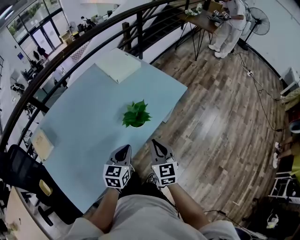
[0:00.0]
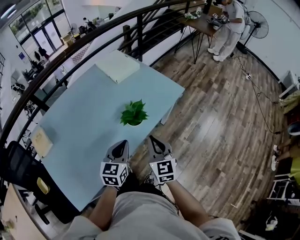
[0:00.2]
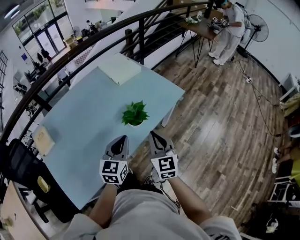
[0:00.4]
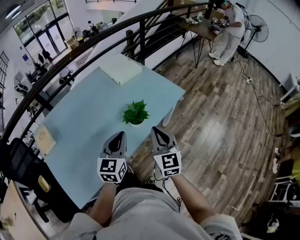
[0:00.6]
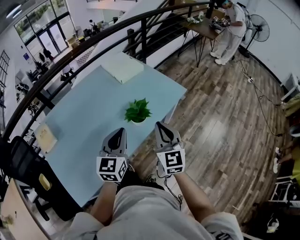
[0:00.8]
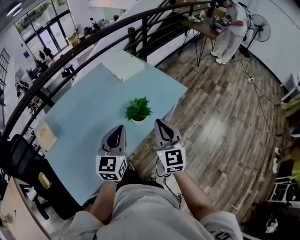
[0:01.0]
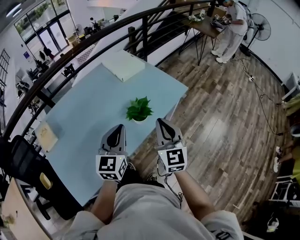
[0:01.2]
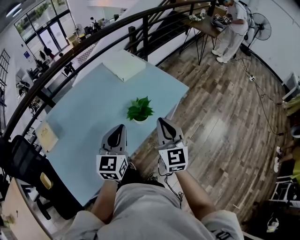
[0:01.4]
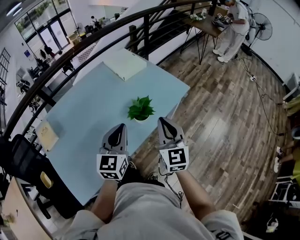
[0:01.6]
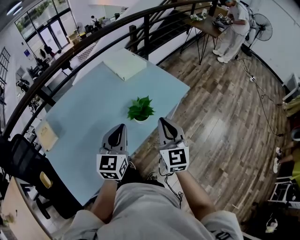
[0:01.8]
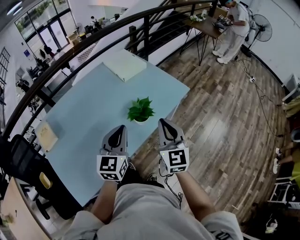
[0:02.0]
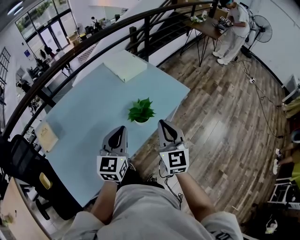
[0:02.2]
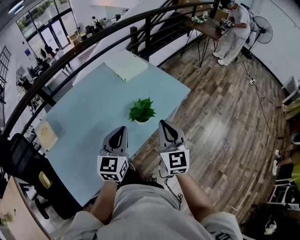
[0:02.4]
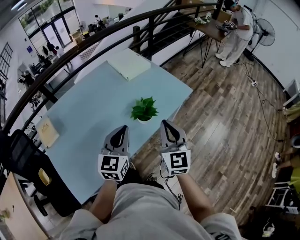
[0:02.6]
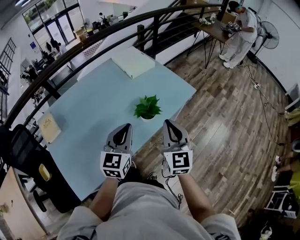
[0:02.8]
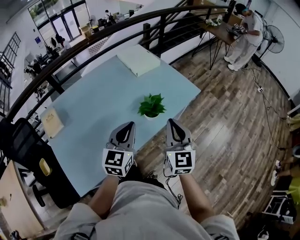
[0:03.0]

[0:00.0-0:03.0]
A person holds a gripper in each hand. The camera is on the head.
0:00.0 to 0:01.6: The two grippers go approximately 15 cm upward. The left gripper changes its angle by some 20 degrees.
0:01.6 to 0:03.0: The grippers stay close to where they were, moving slightly.

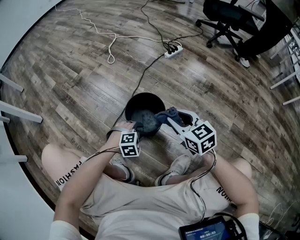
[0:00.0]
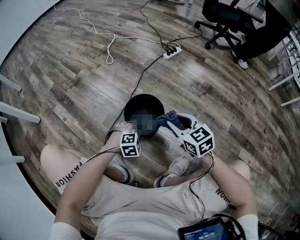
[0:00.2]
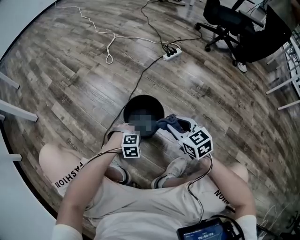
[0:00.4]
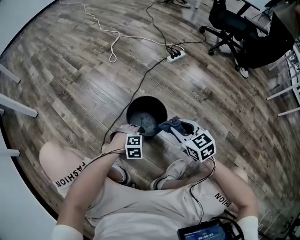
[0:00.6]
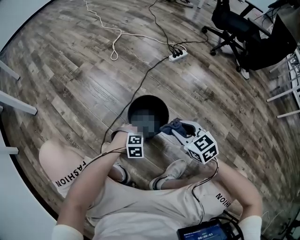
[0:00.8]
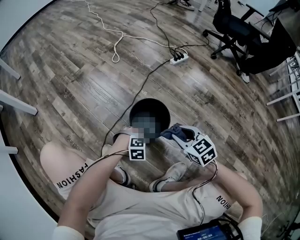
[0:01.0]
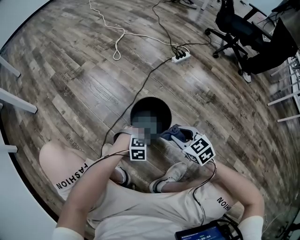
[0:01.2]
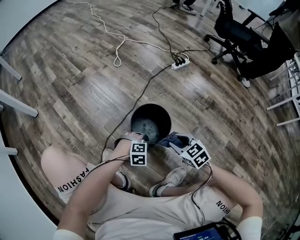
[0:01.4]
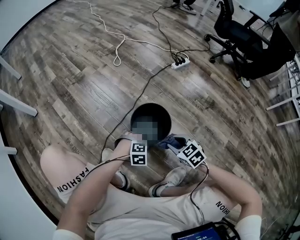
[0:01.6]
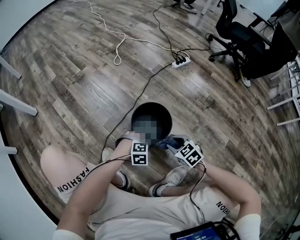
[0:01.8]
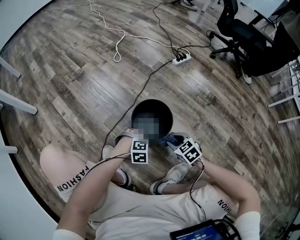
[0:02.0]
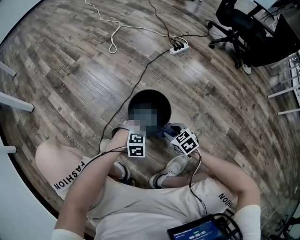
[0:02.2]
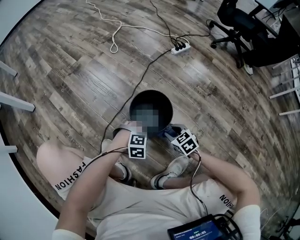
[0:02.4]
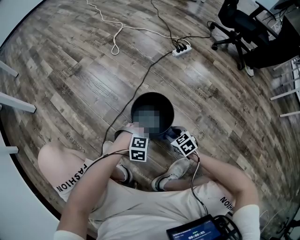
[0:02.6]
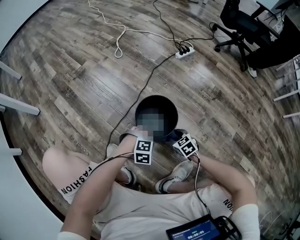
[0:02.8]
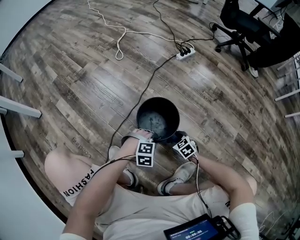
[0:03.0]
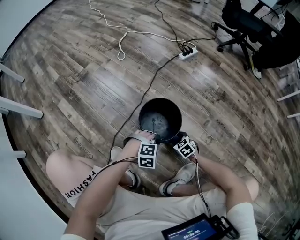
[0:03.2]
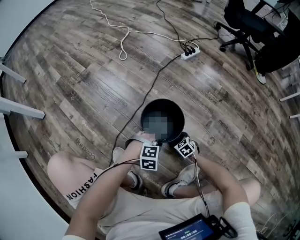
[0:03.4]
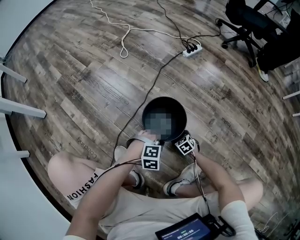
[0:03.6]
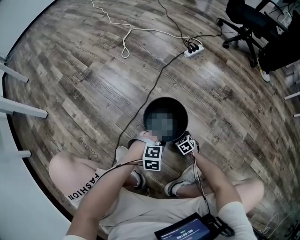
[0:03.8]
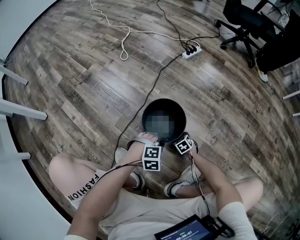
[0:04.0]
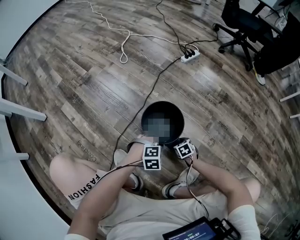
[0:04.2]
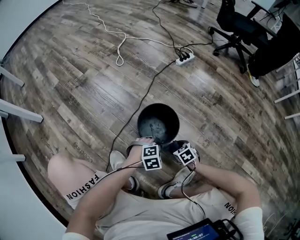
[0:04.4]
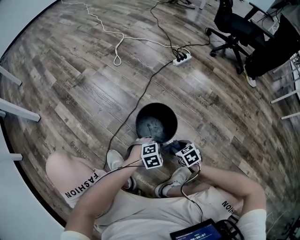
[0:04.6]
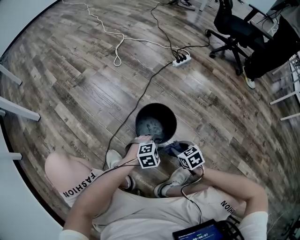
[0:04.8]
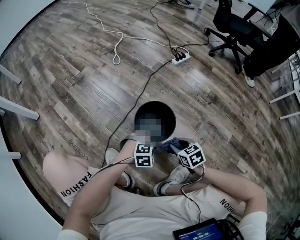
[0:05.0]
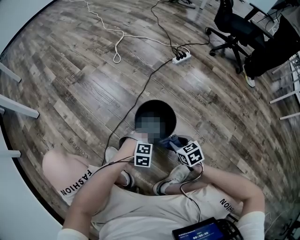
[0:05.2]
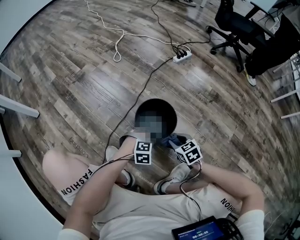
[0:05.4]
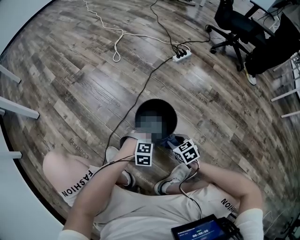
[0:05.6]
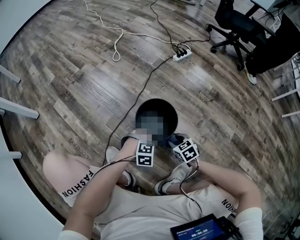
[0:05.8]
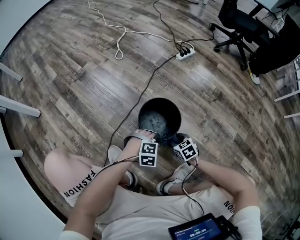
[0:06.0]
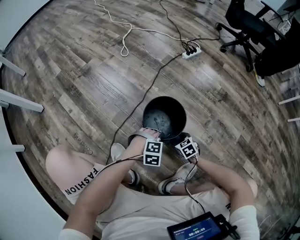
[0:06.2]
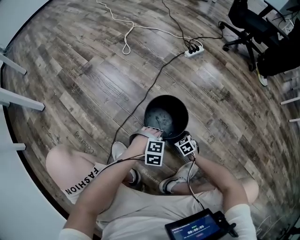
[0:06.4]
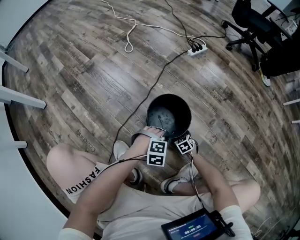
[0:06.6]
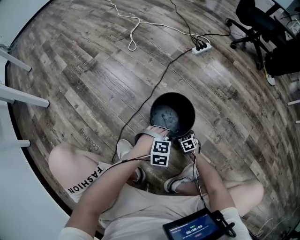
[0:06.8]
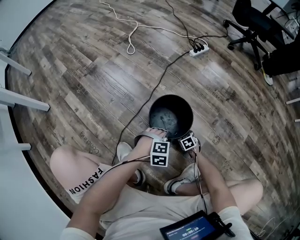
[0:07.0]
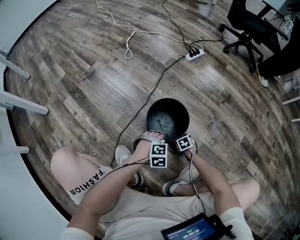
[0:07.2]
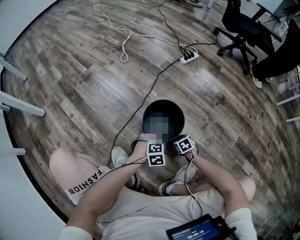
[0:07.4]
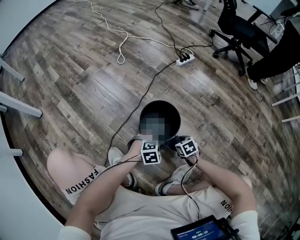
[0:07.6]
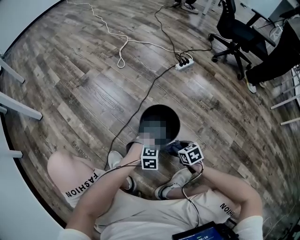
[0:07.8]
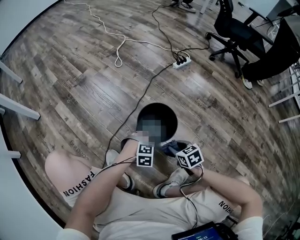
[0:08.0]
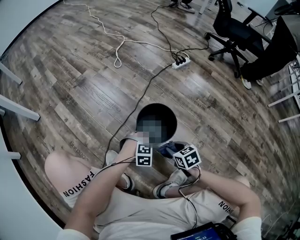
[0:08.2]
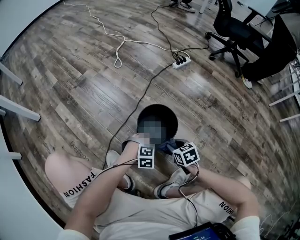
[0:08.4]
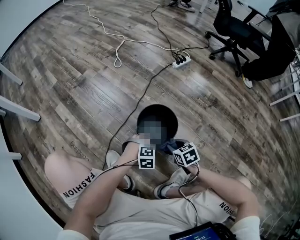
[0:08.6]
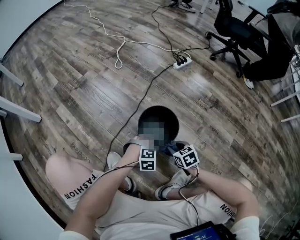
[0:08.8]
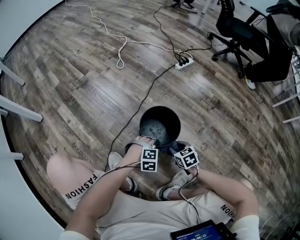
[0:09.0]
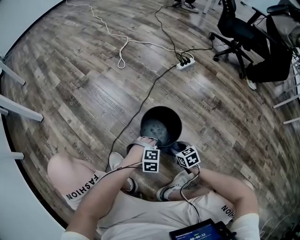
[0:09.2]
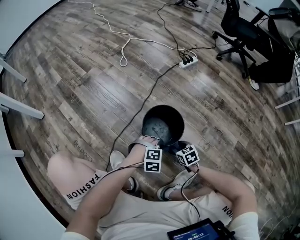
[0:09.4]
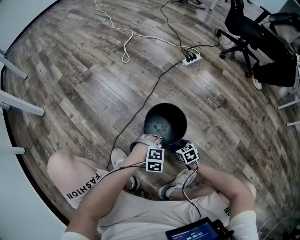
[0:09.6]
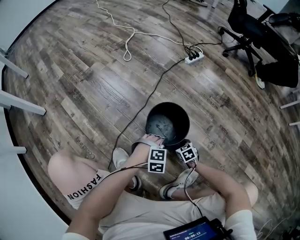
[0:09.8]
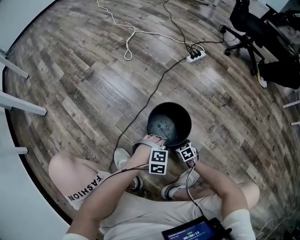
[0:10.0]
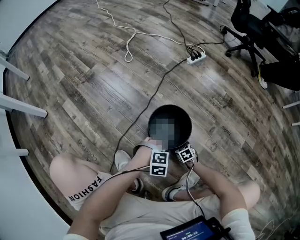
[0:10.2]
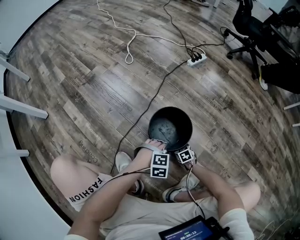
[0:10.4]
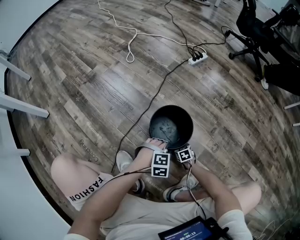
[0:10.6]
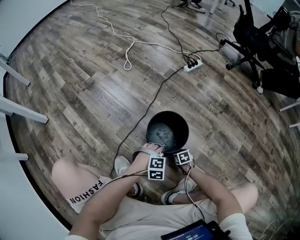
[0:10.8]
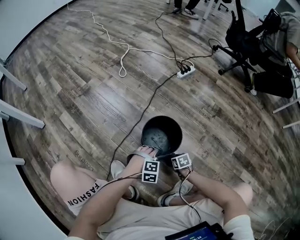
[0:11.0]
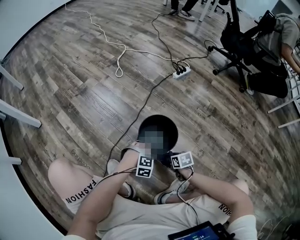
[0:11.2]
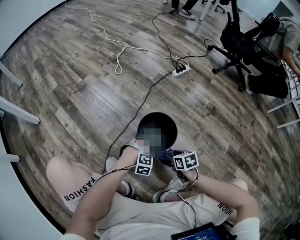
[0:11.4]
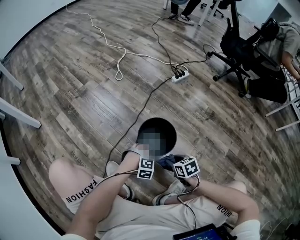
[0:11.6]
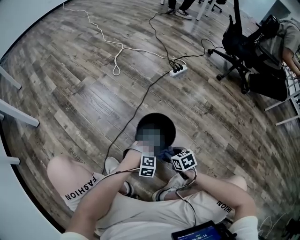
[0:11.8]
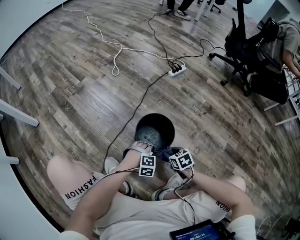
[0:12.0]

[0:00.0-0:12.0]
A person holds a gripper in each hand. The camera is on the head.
0:00.0 to 0:01.6: The left gripper closes. Meanwhile the right gripper is displaced downward by approximately 15 cm, and rotates about 30 degrees.
0:01.6 to 0:03.0: The right gripper moves downward, some 15 cm.
0:03.0 to 0:04.4: The right gripper reaches about 10 cm downward, then returns.
0:04.4 to 0:06.0: The right gripper travels upward and back again, approximately 10 cm each way, while the left gripper opens, then closes again.
0:06.0 to 0:07.6: The right gripper travels downward and back again, about 15 cm each way.
0:09.0 to 0:10.4: The right gripper heads downward, covering about 20 cm.
0:10.4 to 0:12.0: The left gripper opens, then closes again, while the right gripper is displaced upward by some 20 cm.

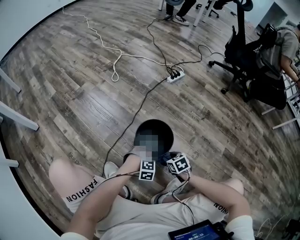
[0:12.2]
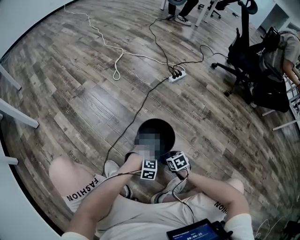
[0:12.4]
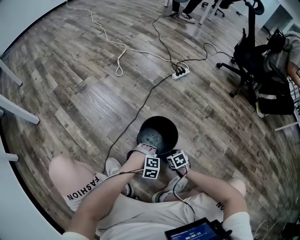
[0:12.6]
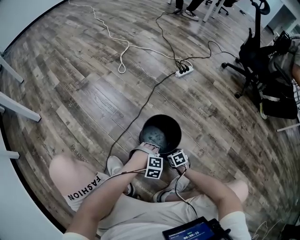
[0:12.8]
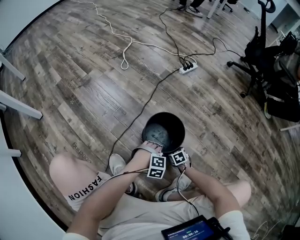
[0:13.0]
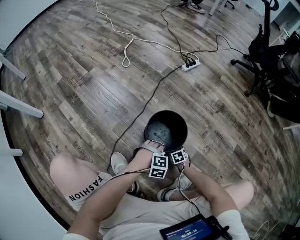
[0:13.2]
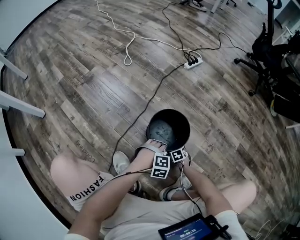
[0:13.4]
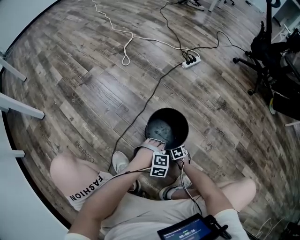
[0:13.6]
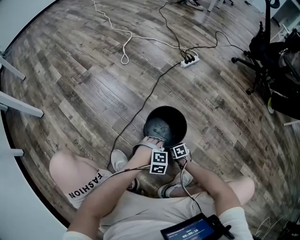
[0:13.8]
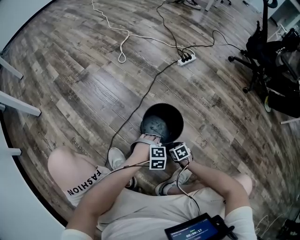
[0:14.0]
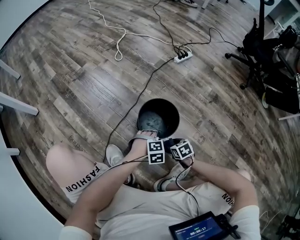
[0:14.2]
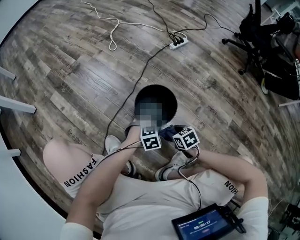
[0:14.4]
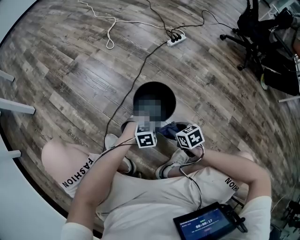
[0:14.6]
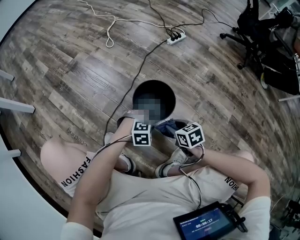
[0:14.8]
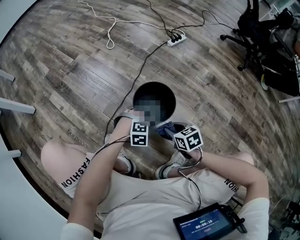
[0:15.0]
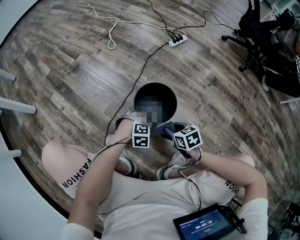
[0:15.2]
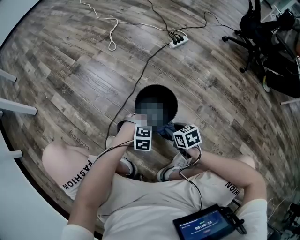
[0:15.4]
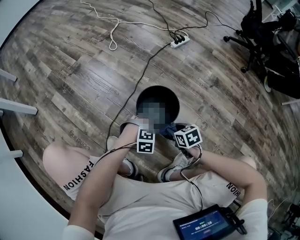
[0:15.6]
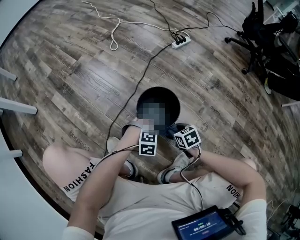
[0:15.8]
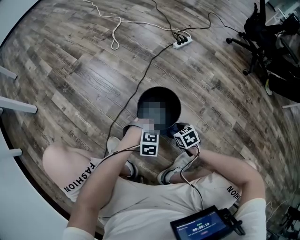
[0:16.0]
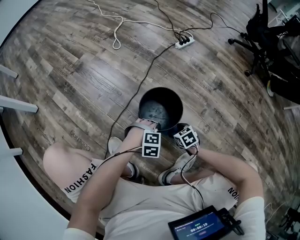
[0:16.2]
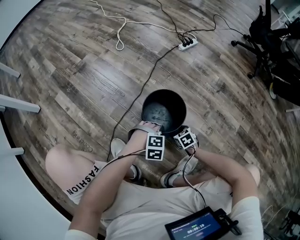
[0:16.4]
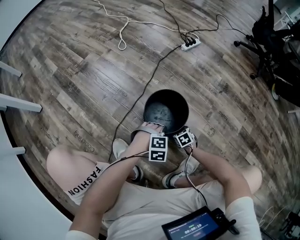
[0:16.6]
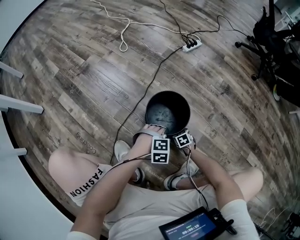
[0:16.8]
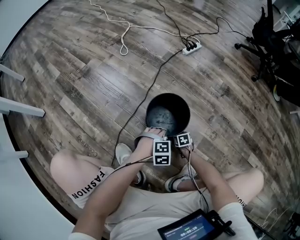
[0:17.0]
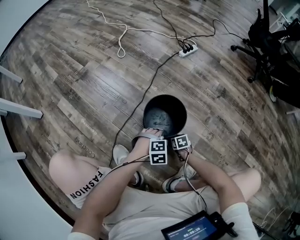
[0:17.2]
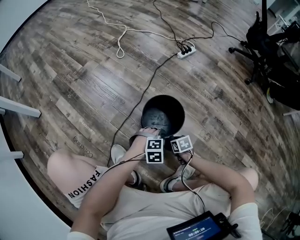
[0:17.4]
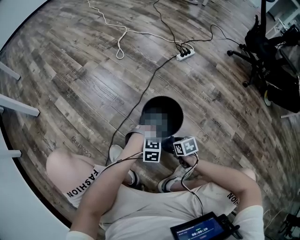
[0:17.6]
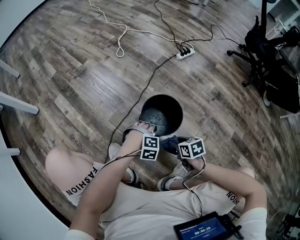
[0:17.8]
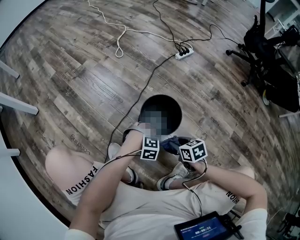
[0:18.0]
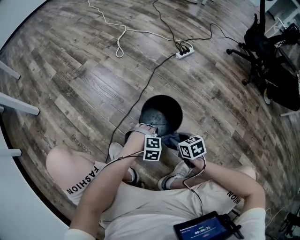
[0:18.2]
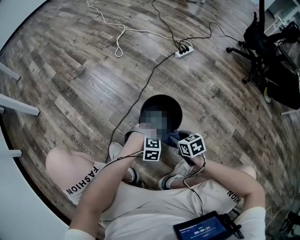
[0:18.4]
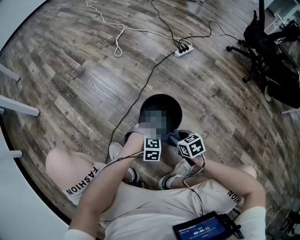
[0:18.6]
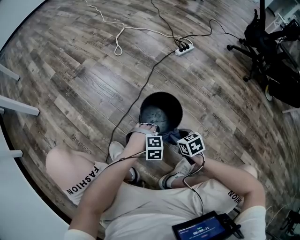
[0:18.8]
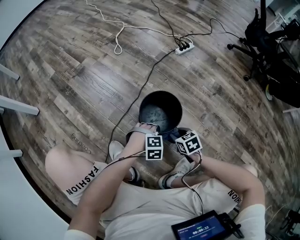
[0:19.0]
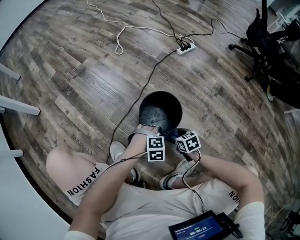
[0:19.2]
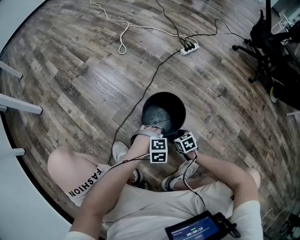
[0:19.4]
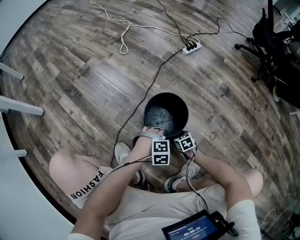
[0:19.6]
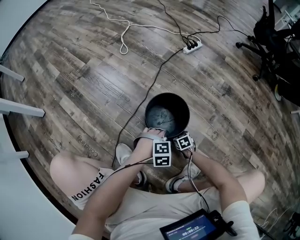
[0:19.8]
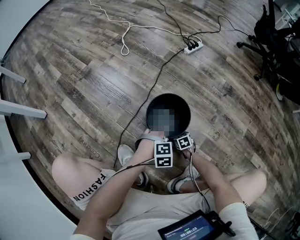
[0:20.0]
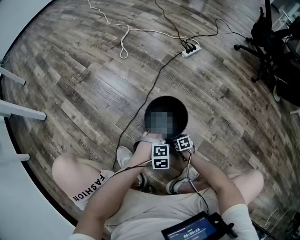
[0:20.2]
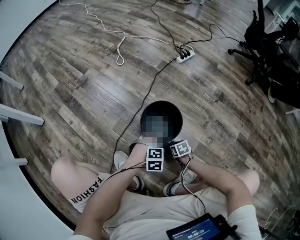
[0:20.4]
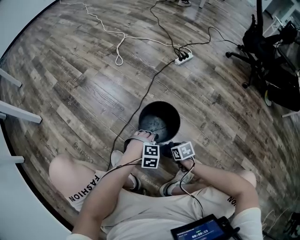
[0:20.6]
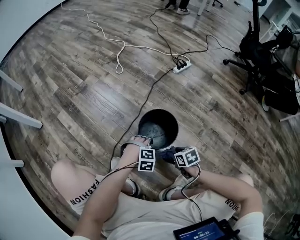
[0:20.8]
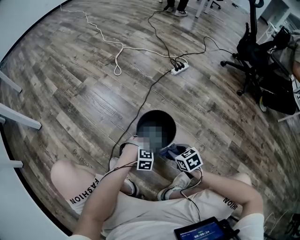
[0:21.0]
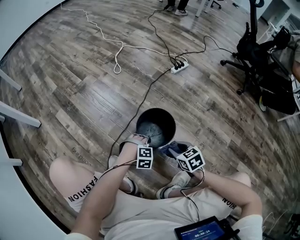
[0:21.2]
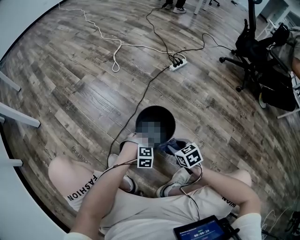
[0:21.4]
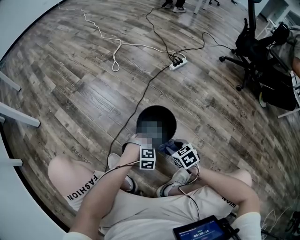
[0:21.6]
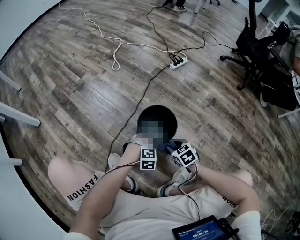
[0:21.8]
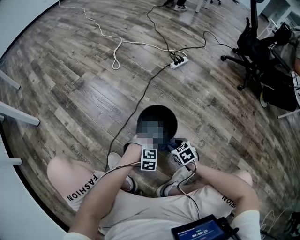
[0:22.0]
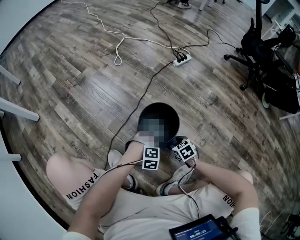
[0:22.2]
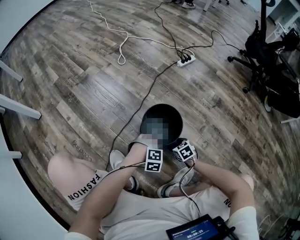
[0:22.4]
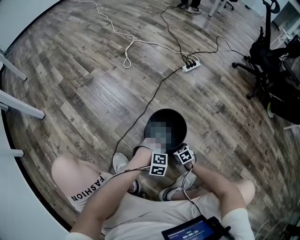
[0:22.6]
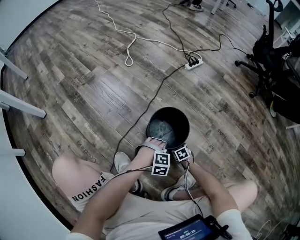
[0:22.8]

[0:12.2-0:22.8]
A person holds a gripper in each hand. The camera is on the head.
0:12.2 to 0:13.8: The right gripper moves downward, some 15 cm.
0:13.8 to 0:15.2: The left gripper opens and closes again; the right gripper moves upward, approximately 20 cm.
0:15.2 to 0:16.8: The right gripper shifts roughly 25 cm downward.
0:16.8 to 0:18.2: The right gripper shifts roughly 25 cm upward. The left gripper opens and closes again.
0:18.2 to 0:19.8: The right gripper shifts approximately 25 cm downward.
0:19.8 to 0:21.2: The right gripper travels upward by some 25 cm; the left gripper opens and closes again.
0:21.2 to 0:22.8: The right gripper heads downward, covering roughly 30 cm.
